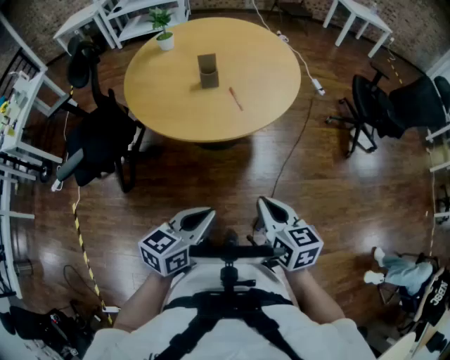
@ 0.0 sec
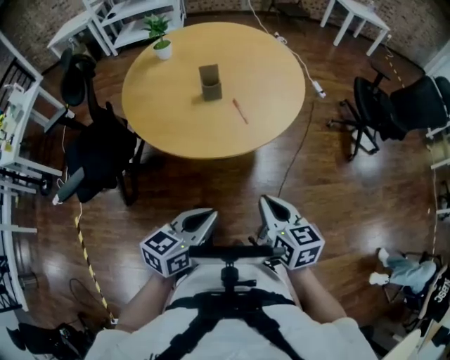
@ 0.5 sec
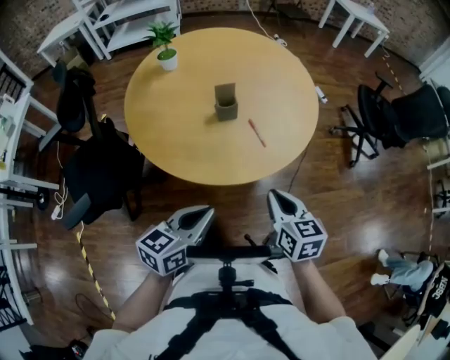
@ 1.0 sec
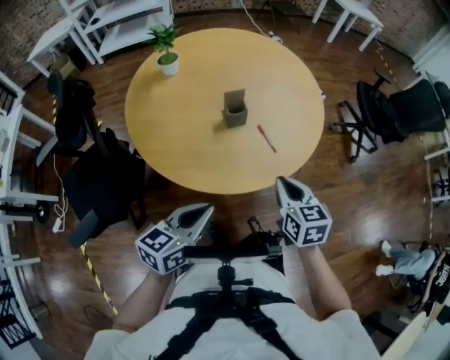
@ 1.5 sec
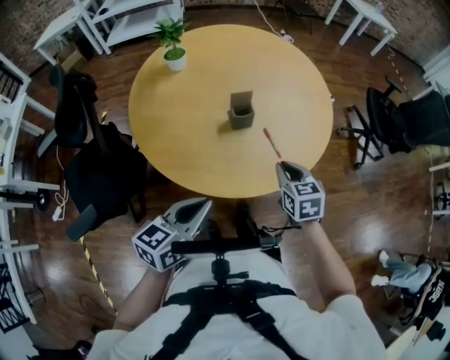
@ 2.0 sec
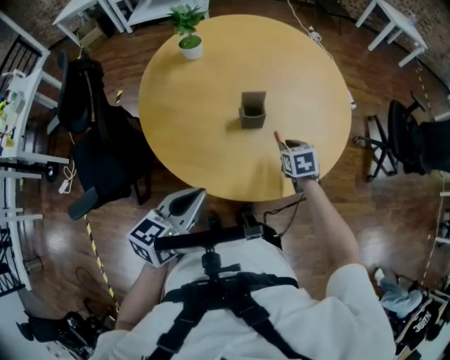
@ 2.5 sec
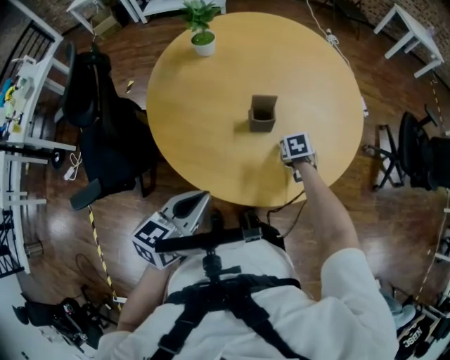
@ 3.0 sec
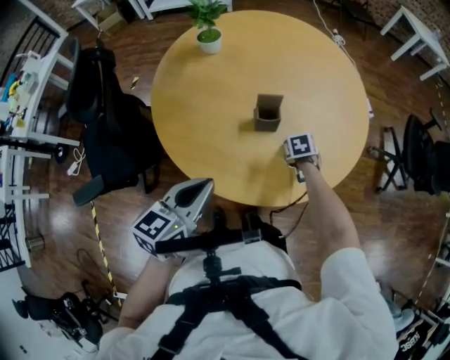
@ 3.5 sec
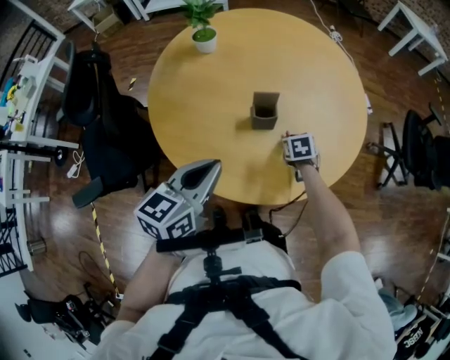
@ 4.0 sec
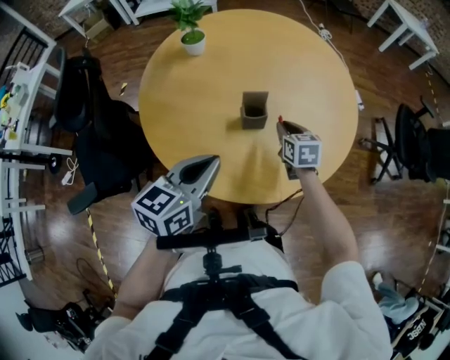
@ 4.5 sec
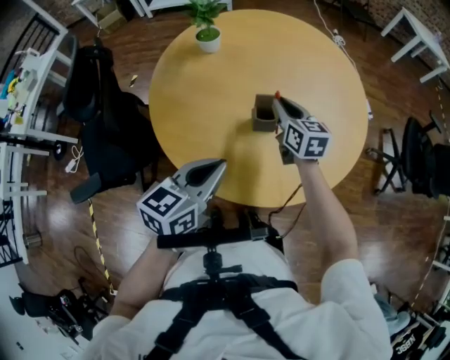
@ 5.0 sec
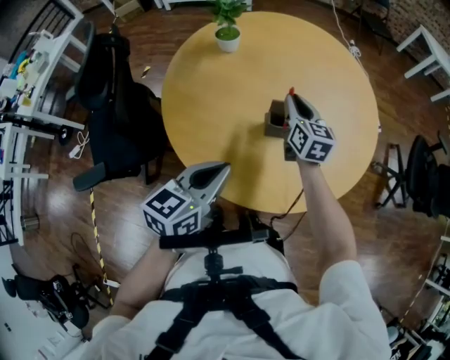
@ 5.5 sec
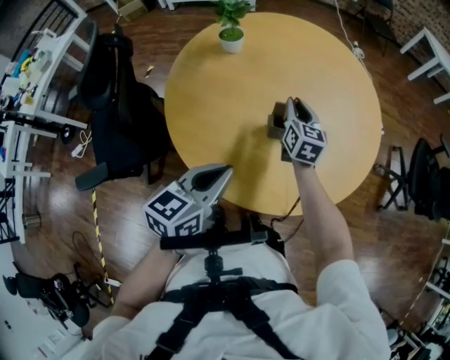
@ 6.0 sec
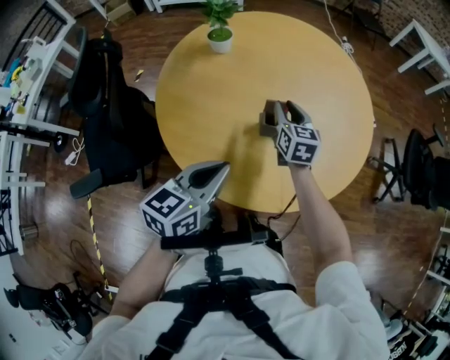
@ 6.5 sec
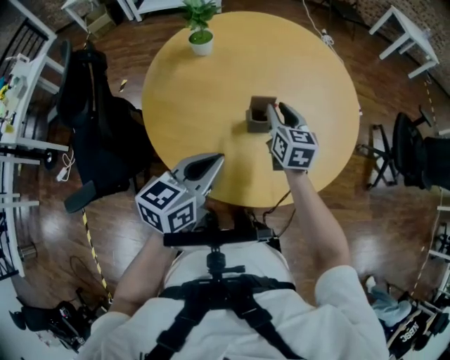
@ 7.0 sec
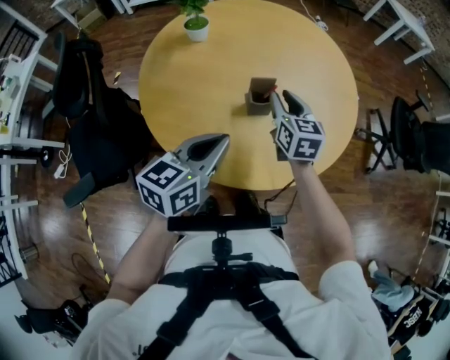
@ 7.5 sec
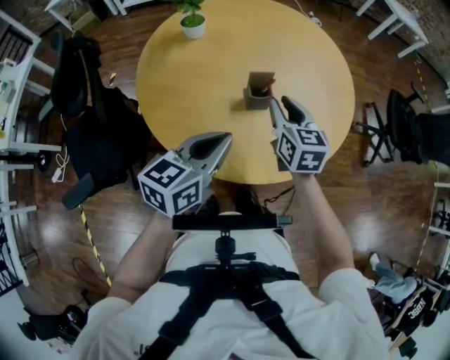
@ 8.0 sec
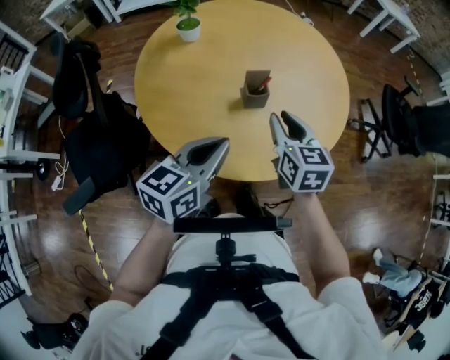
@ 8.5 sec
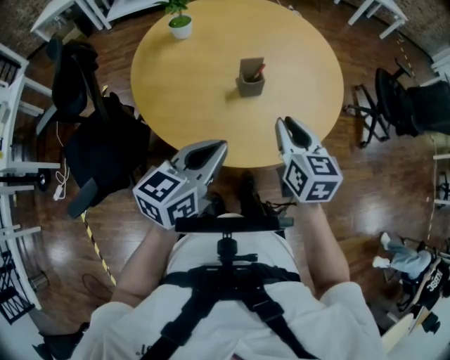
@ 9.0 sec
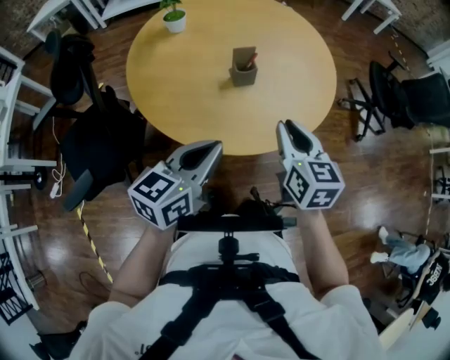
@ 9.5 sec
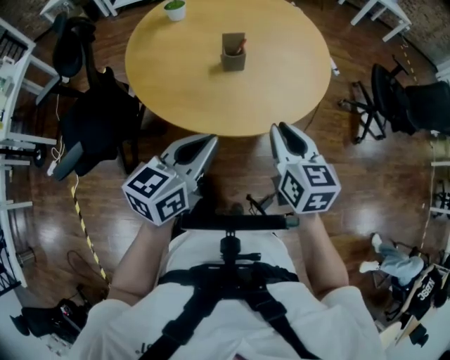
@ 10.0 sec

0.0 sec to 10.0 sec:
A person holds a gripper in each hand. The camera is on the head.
0.0 sec to 2.0 sec: The left gripper shifts roughly 30 cm to the left and forward; the right gripper shifts approximately 35 cm forward and to the left, and rotates roughly 20 degrees.
2.0 sec to 4.0 sec: The left gripper shifts approximately 10 cm forward. Meanwhile the right gripper goes about 25 cm downward and forward, and rotates some 20 degrees.
4.0 sec to 6.0 sec: The right gripper moves upward, forward and to the left, approximately 20 cm, and angles its fingers upward, by some 40 degrees.
6.0 sec to 8.0 sec: The right gripper moves backward and upward, about 15 cm.
8.0 sec to 10.0 sec: Both grippers move backward and to the right, roughly 20 cm.

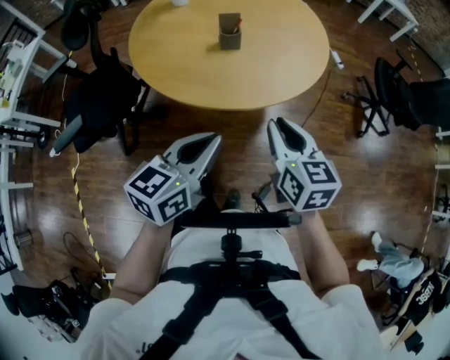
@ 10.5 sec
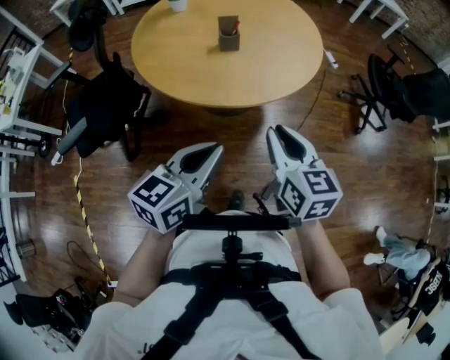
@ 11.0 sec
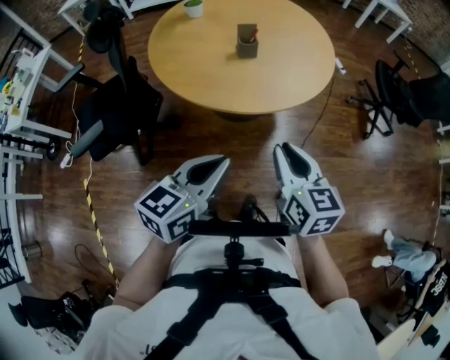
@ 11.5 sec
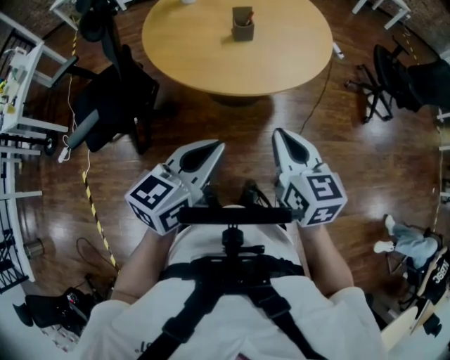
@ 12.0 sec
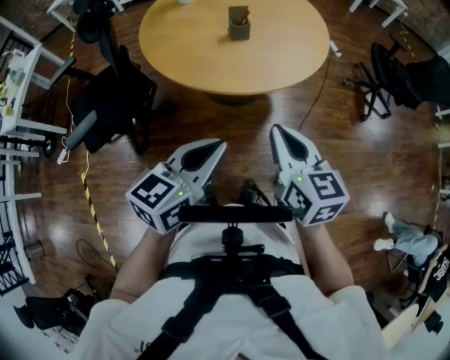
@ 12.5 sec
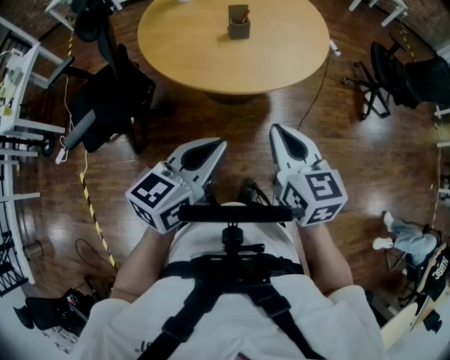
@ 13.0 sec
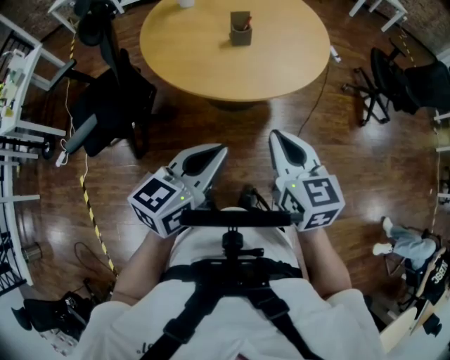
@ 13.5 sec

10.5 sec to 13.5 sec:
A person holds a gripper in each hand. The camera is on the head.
10.5 sec to 12.0 sec: The two grippers go about 10 cm backward and to the left.
12.0 sec to 13.5 sec: The grippers stay close to where they were, moving slightly.

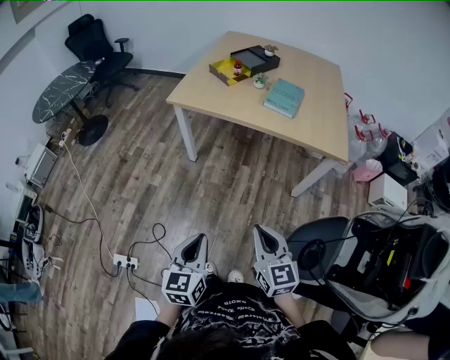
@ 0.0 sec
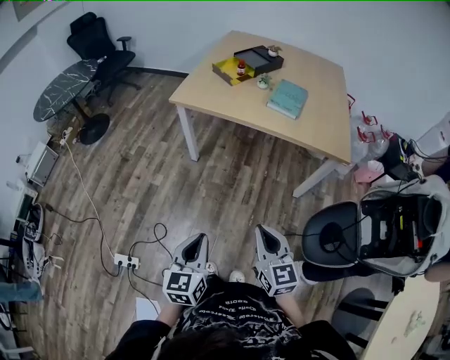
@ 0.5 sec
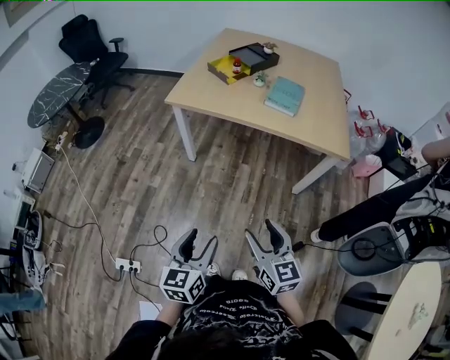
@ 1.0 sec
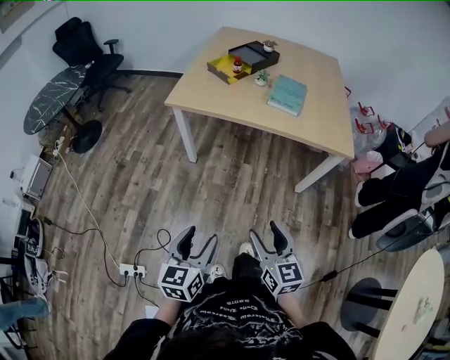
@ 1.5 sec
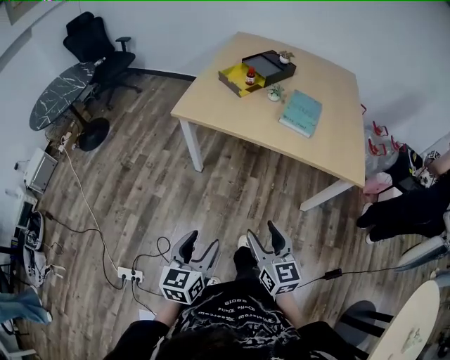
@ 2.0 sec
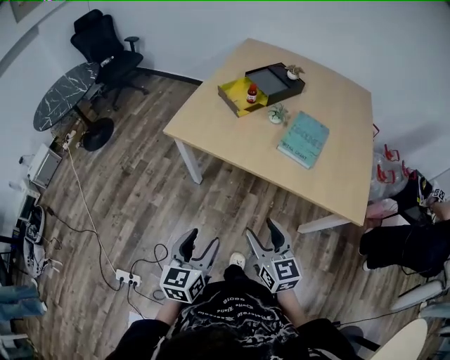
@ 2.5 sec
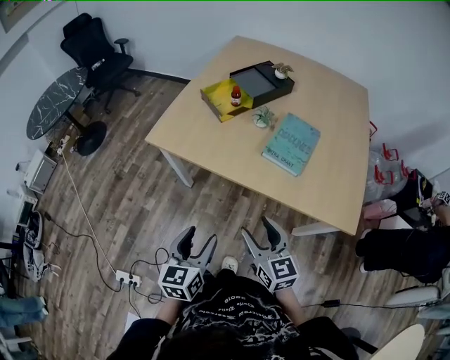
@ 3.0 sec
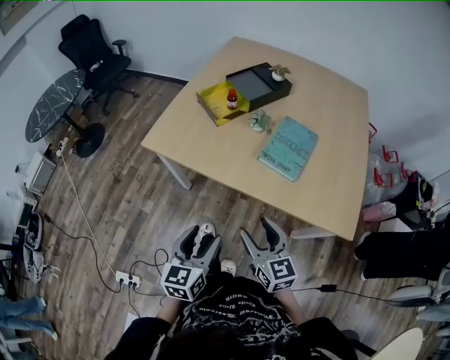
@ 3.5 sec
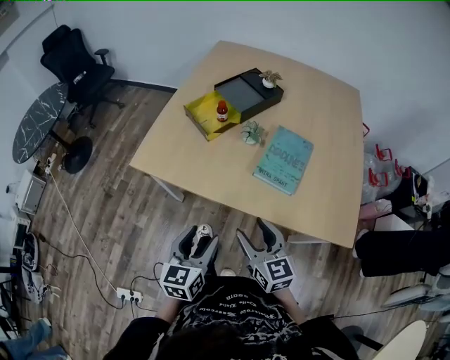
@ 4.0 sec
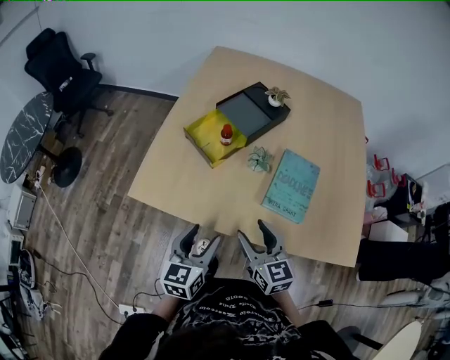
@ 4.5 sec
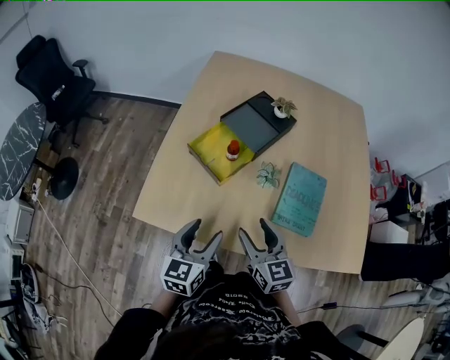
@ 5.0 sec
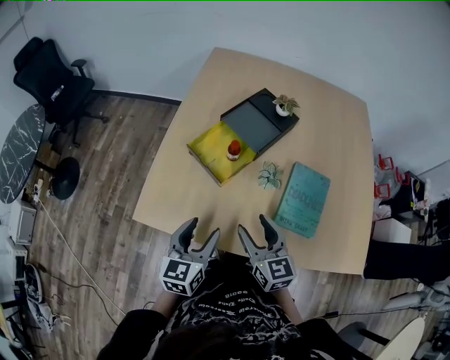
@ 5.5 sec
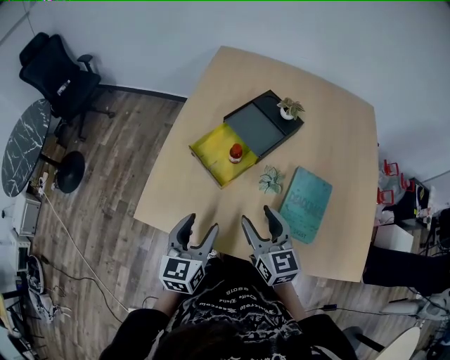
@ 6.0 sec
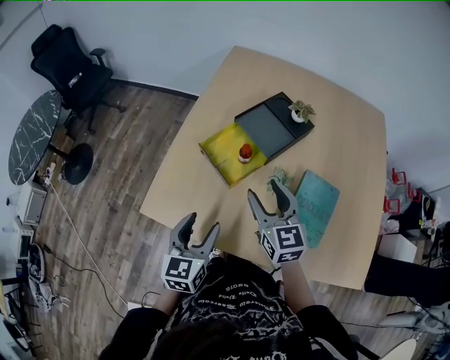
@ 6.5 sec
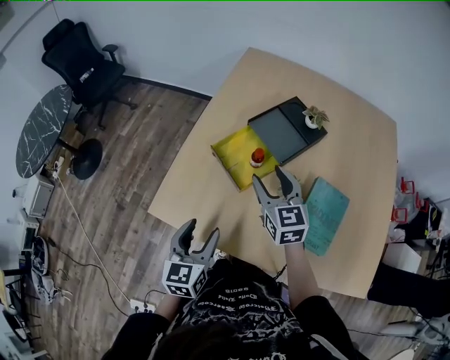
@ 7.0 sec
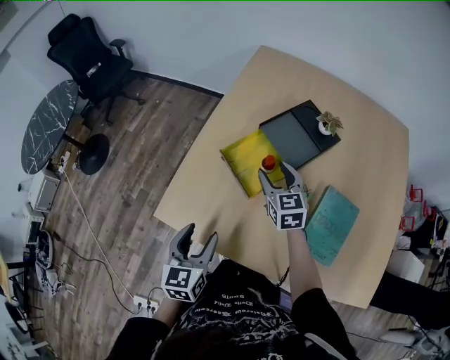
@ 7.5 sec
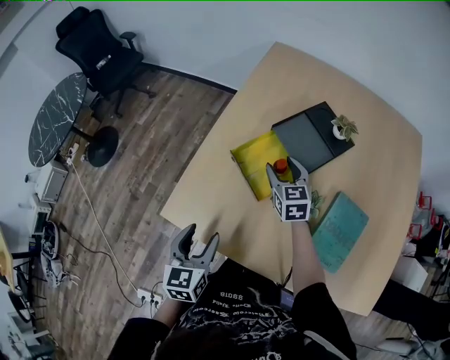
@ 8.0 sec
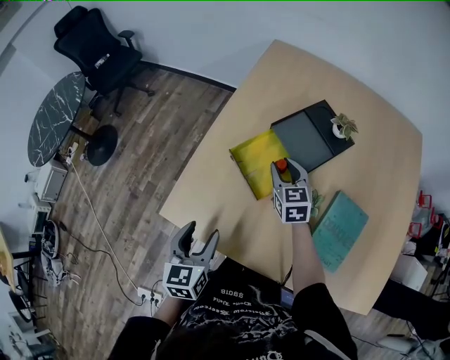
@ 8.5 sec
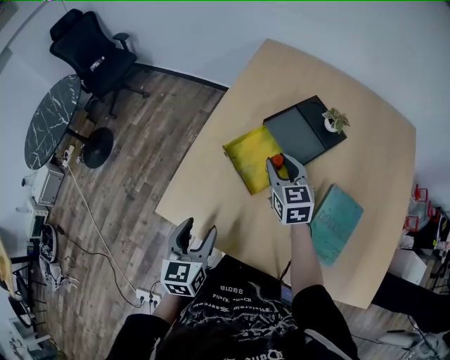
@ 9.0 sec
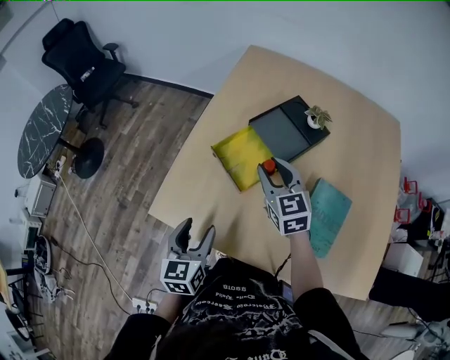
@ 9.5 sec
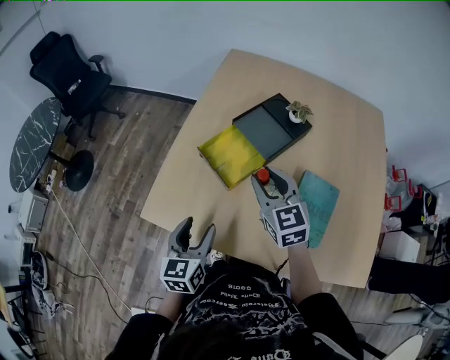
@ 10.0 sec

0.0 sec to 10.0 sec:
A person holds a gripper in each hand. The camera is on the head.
0.0 sec to 2.0 sec: The grippers both shift forward by approximately 15 cm. The left gripper opens, while the right gripper opens its fingers.
2.0 sec to 4.0 sec: The grippers both shift forward and to the right by about 35 cm.
4.0 sec to 6.0 sec: The grippers both shift forward by approximately 25 cm.
6.0 sec to 8.0 sec: The left gripper moves to the left, roughly 10 cm. Meanwhile the right gripper travels forward by approximately 25 cm.
8.0 sec to 10.0 sec: The left gripper heads to the right, covering approximately 5 cm. The right gripper shifts about 20 cm backward and upward, and closes.

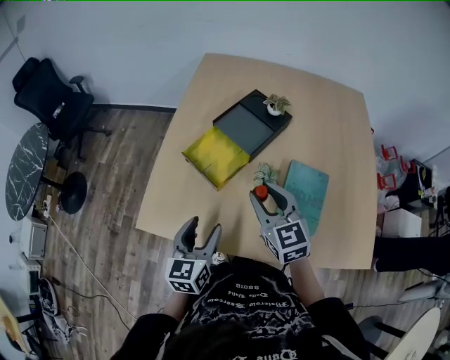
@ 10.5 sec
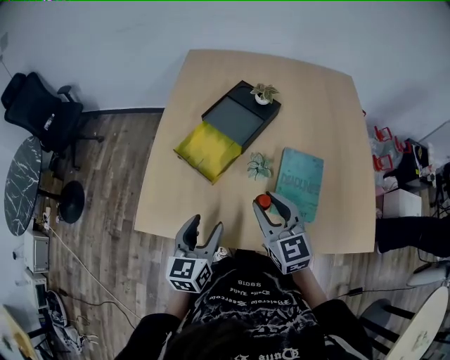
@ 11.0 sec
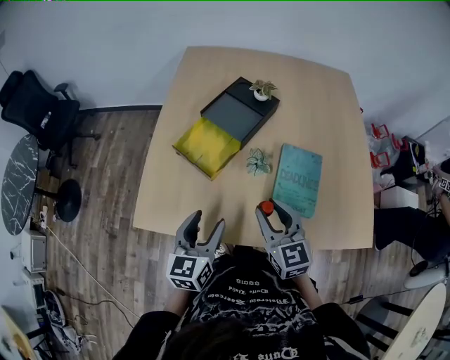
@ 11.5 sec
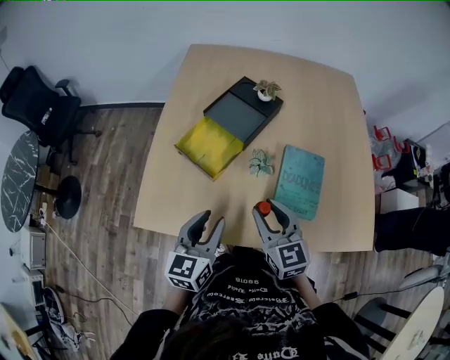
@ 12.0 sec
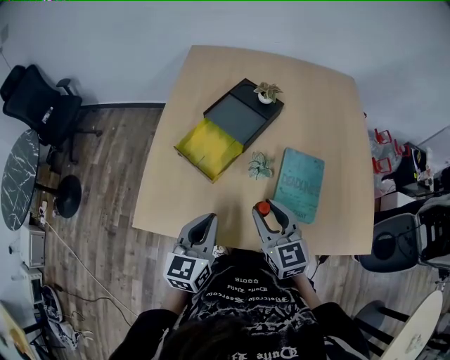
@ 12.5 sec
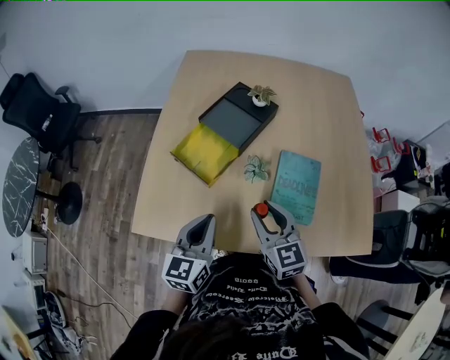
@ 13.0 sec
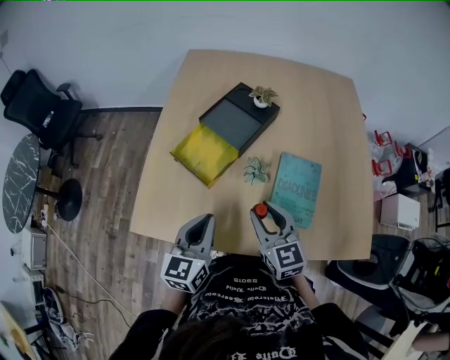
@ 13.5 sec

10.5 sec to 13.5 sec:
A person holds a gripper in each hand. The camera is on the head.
10.5 sec to 12.0 sec: The left gripper closes its fingers, while the right gripper shifts about 5 cm backward.
12.0 sec to 13.5 sec: The left gripper closes.
